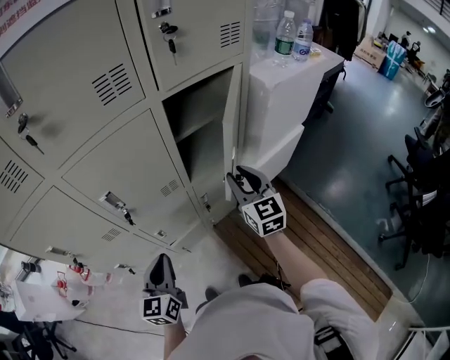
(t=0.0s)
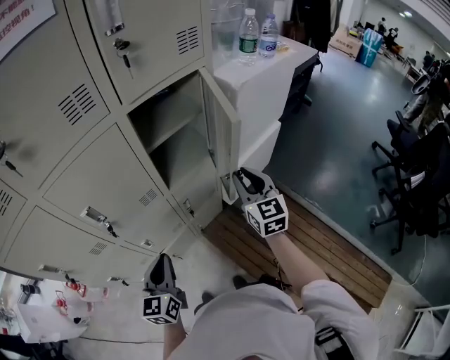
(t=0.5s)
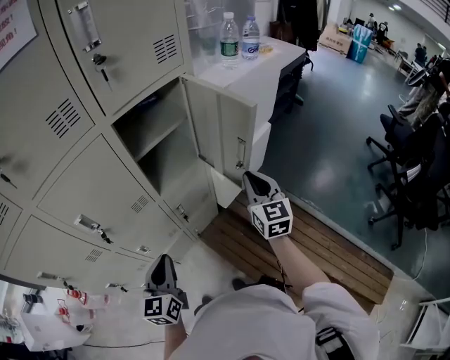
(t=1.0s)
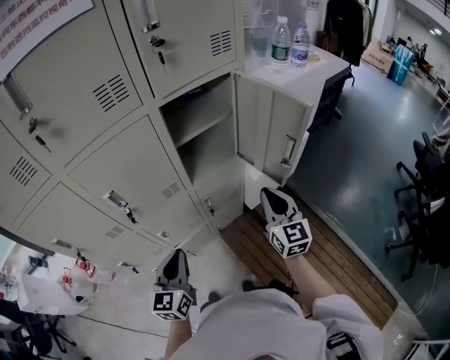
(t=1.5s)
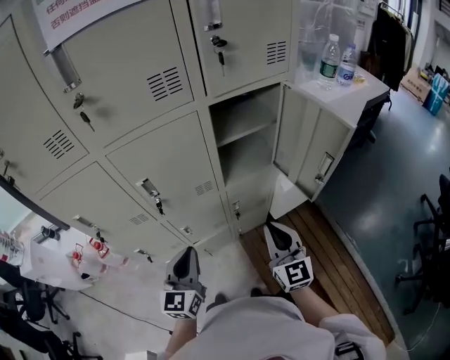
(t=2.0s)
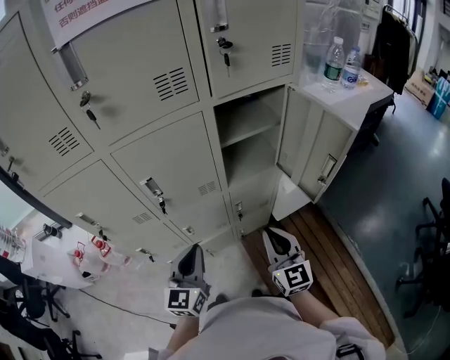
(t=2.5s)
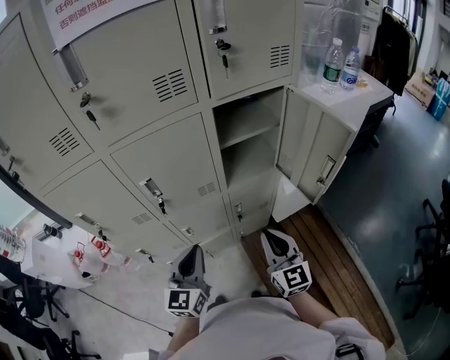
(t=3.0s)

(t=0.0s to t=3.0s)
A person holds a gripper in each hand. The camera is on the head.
t=0.0s - t=1.5s: The right gripper travels to the right and backward by approximately 10 cm, and closes up. The left gripper shifts roughly 5 cm to the right.
t=1.5s - t=3.0s: The right gripper travels to the left and backward by about 15 cm.

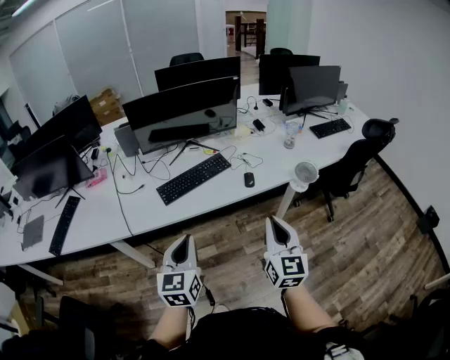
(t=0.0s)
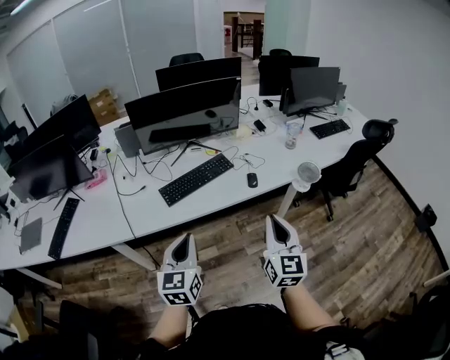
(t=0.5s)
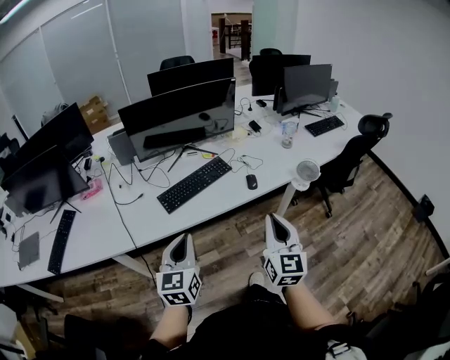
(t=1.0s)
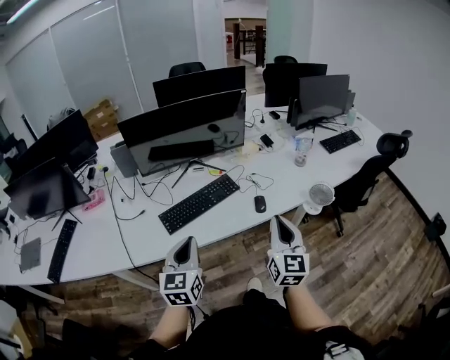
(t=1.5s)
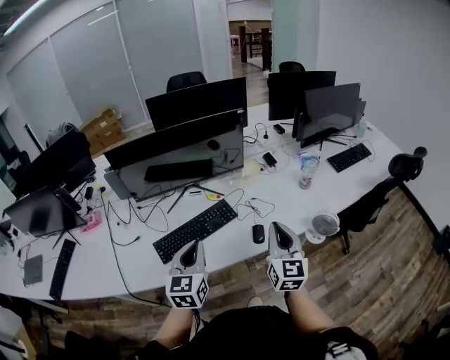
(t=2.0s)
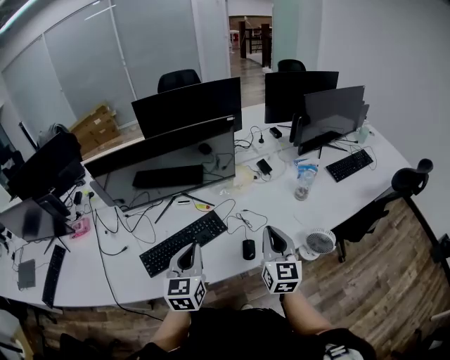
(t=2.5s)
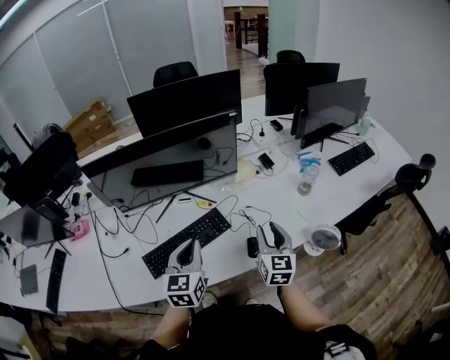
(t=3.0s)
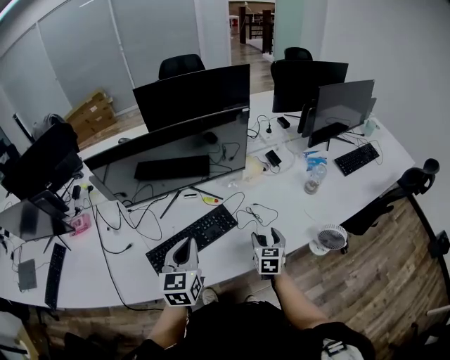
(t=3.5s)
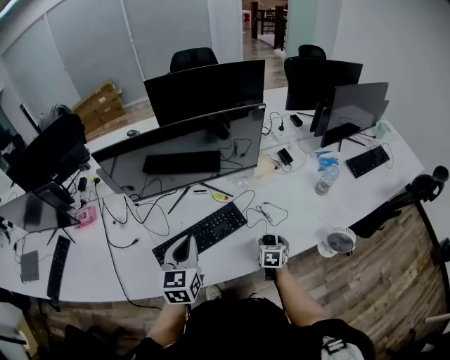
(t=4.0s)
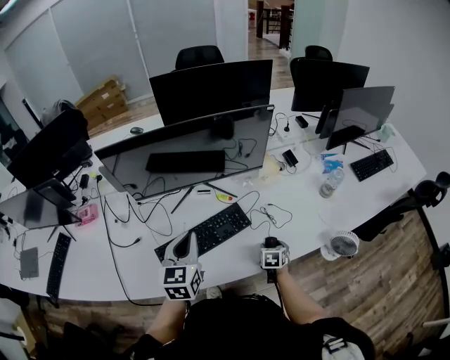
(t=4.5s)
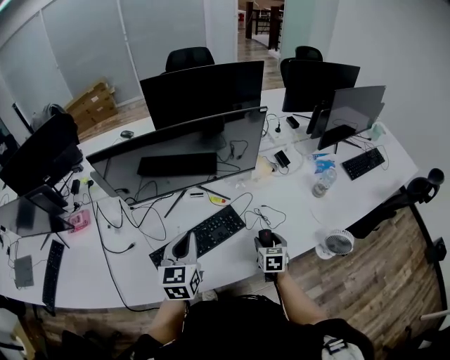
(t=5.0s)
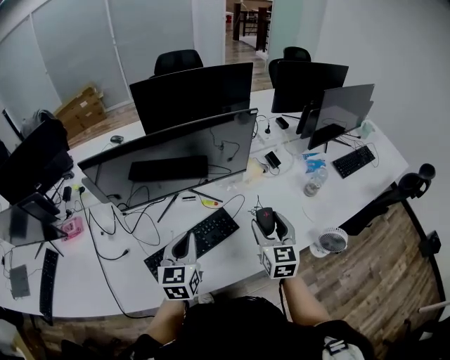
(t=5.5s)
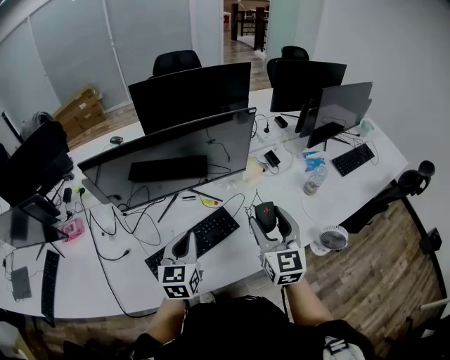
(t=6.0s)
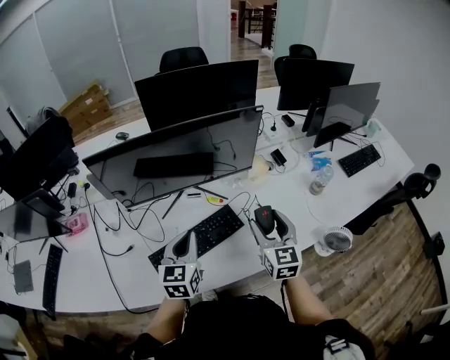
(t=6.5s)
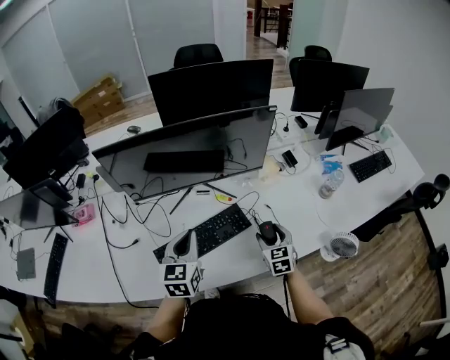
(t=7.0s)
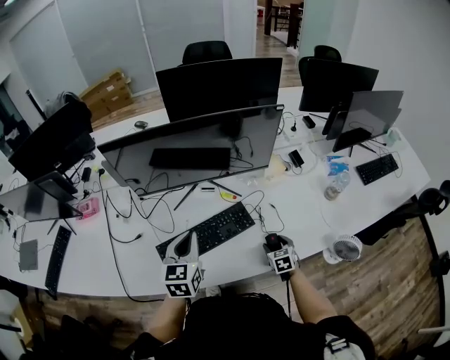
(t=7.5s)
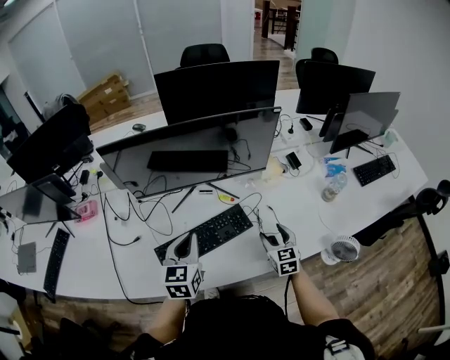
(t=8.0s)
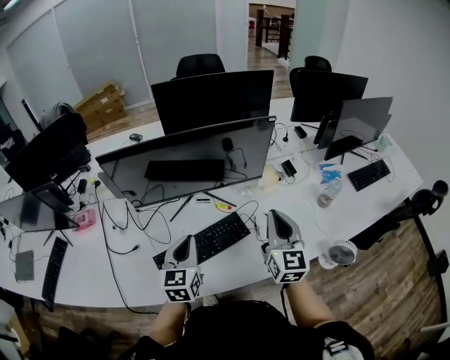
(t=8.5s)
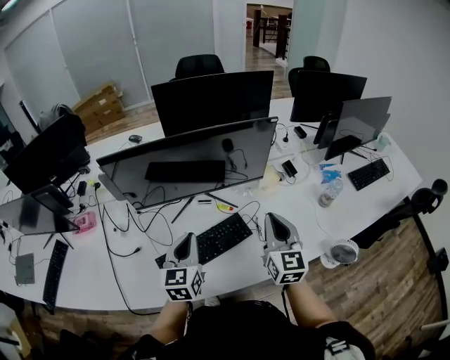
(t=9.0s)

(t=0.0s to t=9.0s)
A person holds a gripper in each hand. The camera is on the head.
t=0.0s - t=2.0s: Both grippers travel together forward, some 30 cm.
t=2.0s - t=4.5s: The right gripper travels downward by approximately 35 cm, tilts its fingers about 50 degrees downward, and opens up. The left gripper is displaced forward and to the left by approximately 15 cm.
t=4.5s - t=7.0s: The right gripper heads upward, covering approximately 15 cm, and turns by some 30 degrees.
t=7.0s - t=9.0s: The right gripper heads upward, covering some 20 cm, swivels roughly 30 degrees, and closes its fingers.

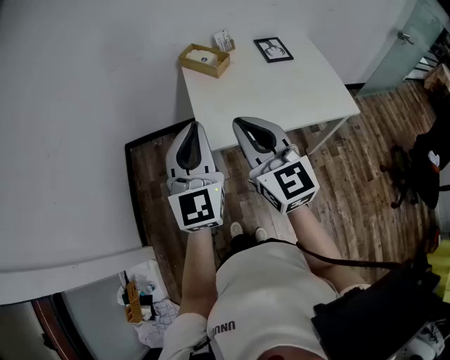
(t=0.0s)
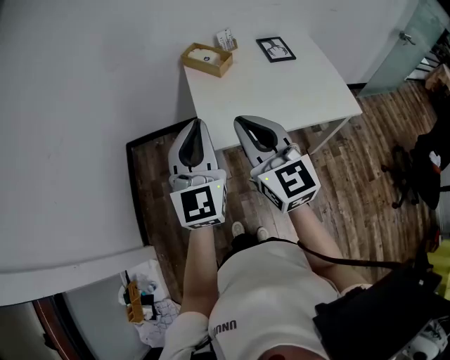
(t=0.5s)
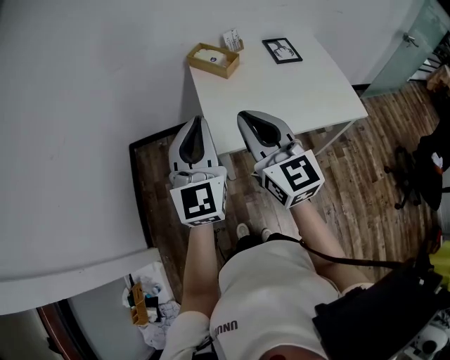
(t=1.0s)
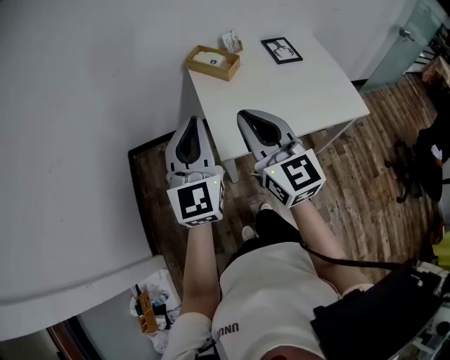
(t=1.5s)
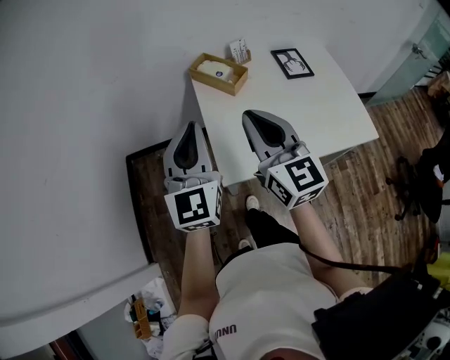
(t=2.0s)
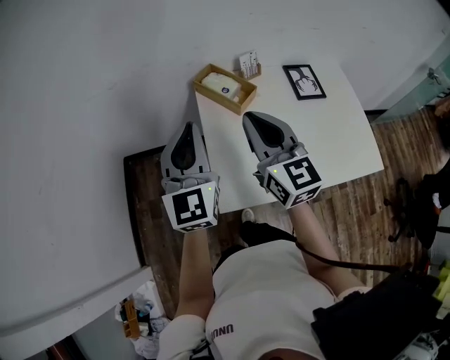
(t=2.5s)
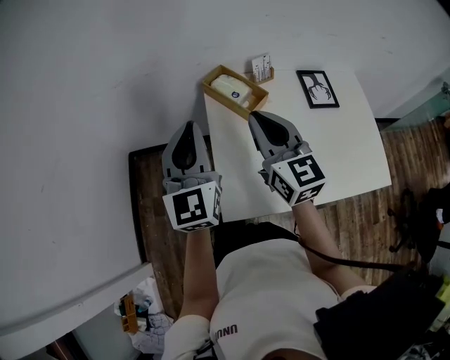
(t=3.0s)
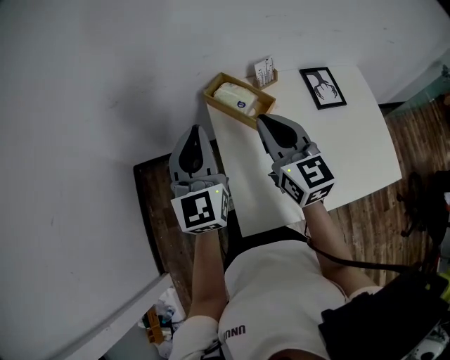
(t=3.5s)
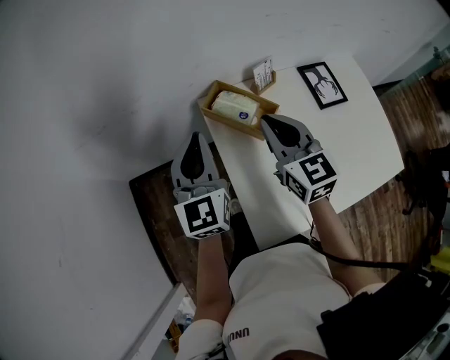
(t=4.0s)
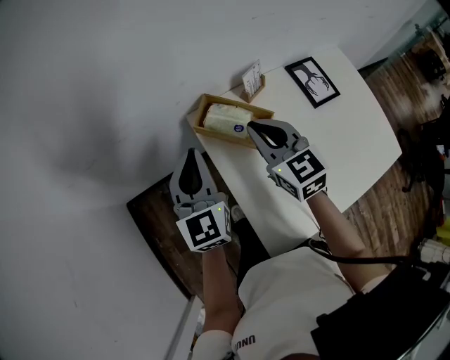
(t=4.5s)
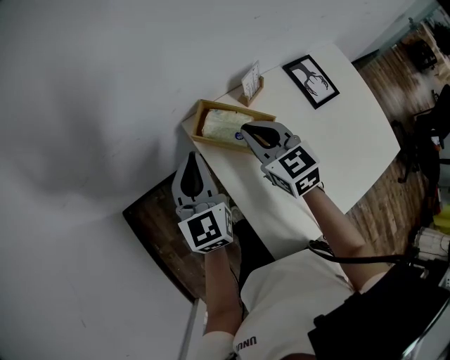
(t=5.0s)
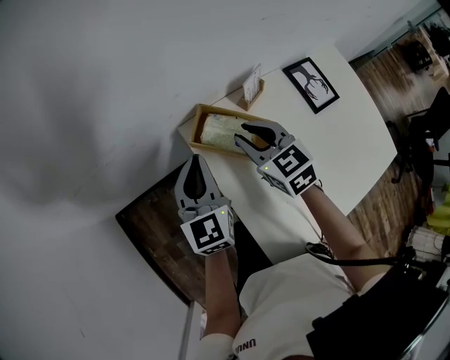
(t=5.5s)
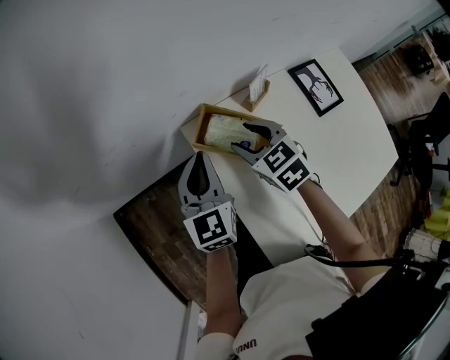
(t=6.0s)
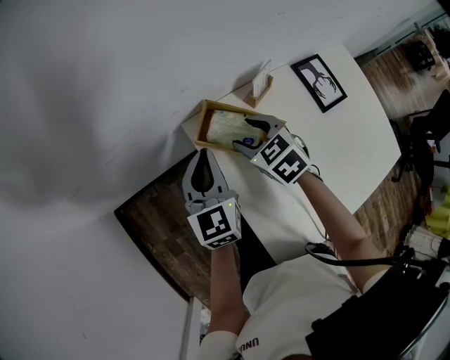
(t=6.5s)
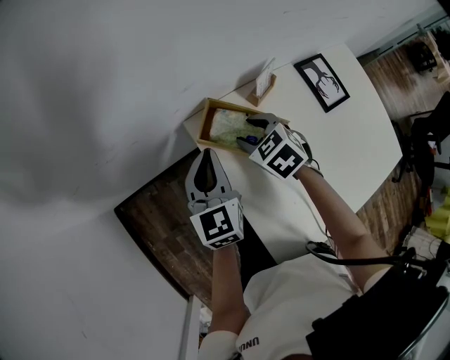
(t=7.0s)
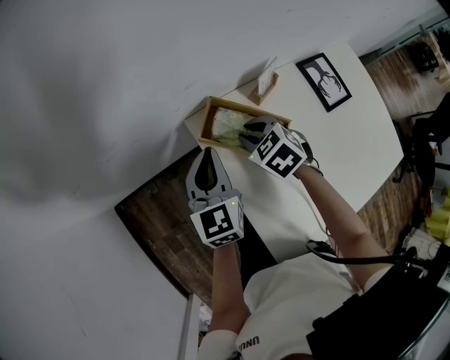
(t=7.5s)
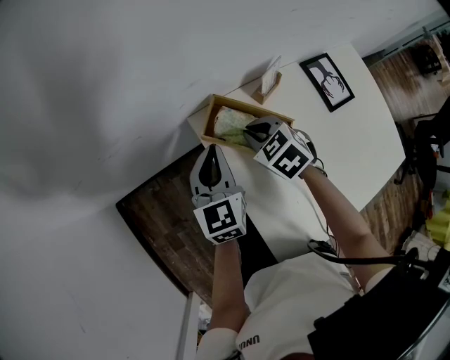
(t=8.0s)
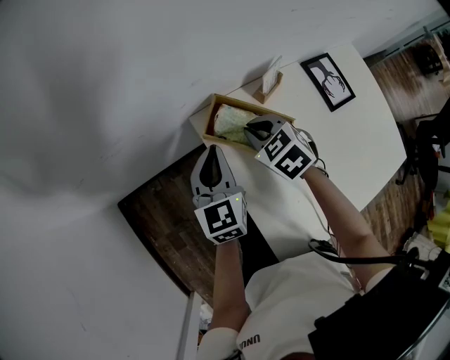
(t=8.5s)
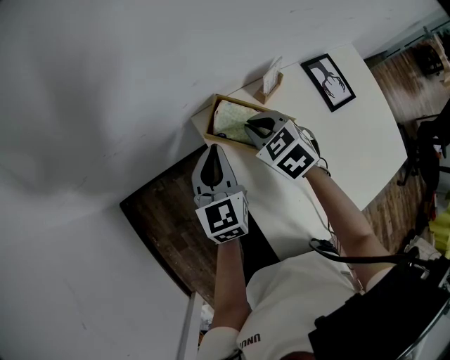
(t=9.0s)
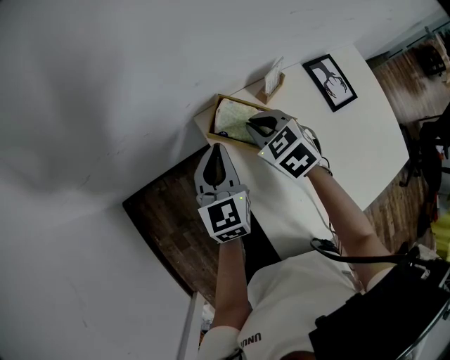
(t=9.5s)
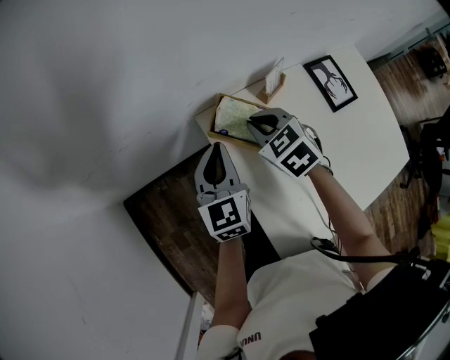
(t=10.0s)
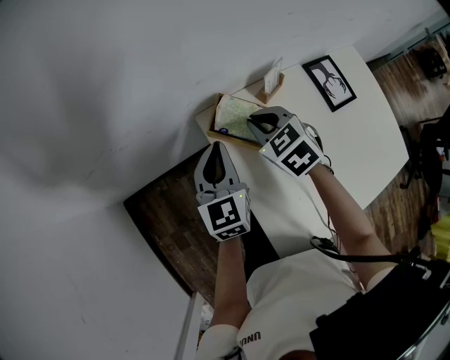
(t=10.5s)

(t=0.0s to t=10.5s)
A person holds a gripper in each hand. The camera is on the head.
t=0.0s - t=2.0s: Both grippers travel together forward, about 15 cm.
t=2.0s - t=4.0s: The two grippers go roughly 30 cm forward.
t=4.0s - t=6.5s: Both grippers move downward and forward, some 20 cm. The right gripper angles its fingers downward, by roughly 40 degrees, and opens.
t=6.5s - t=8.5s: The right gripper closes.
t=8.5s - t=10.5s: The grippers stay close to where they were, moving slightly.

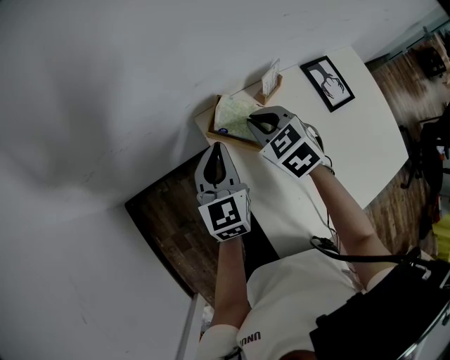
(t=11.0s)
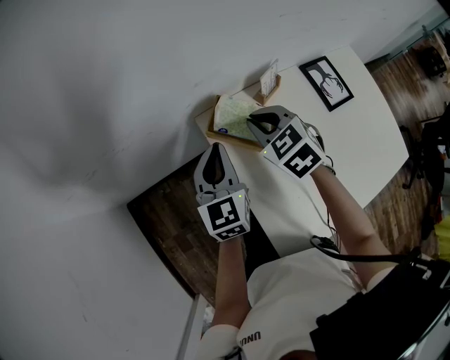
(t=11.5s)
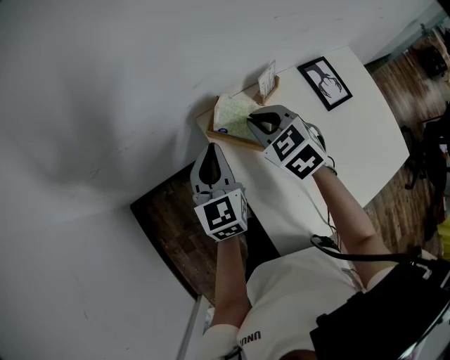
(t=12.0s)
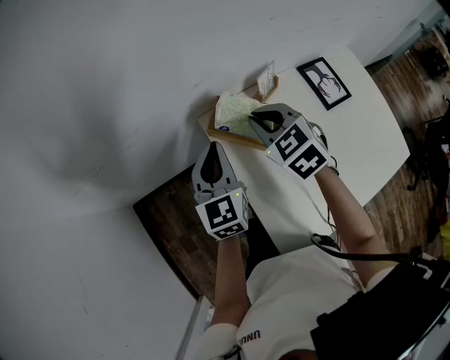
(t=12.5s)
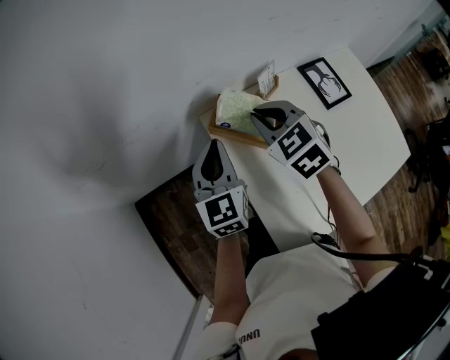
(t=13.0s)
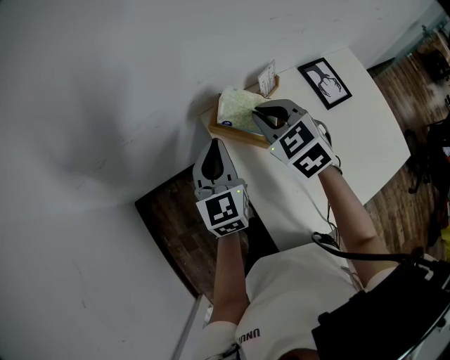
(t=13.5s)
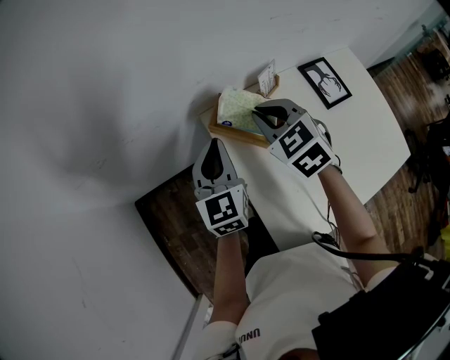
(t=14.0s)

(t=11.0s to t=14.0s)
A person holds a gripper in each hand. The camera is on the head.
t=11.0s - t=12.5s: The right gripper goes roughly 5 cm upward.
t=12.5s - t=14.0s: There are only small adjustments of the grippers.

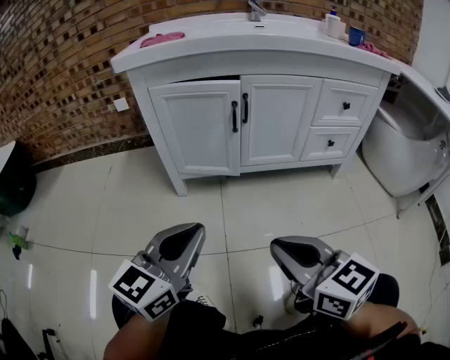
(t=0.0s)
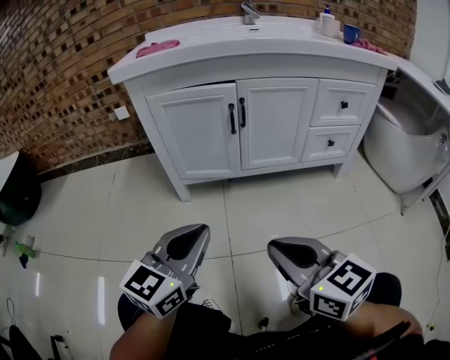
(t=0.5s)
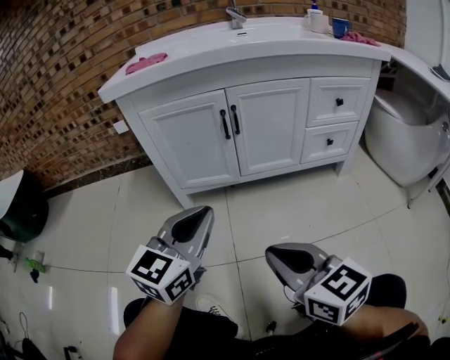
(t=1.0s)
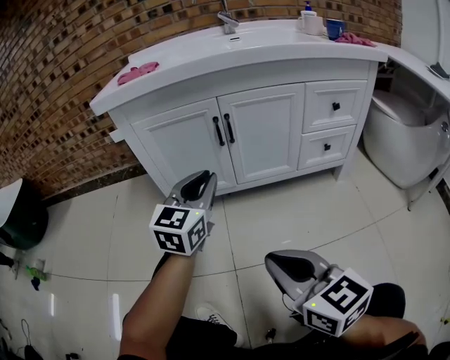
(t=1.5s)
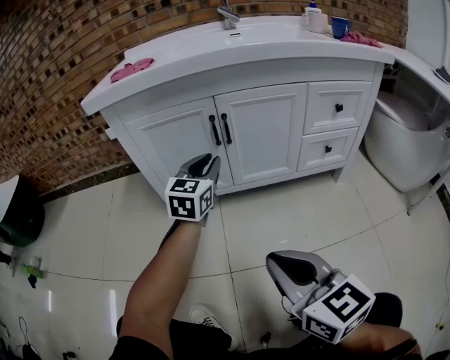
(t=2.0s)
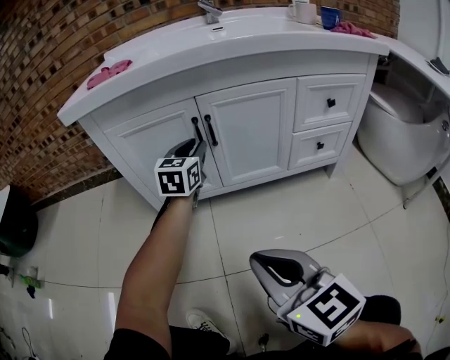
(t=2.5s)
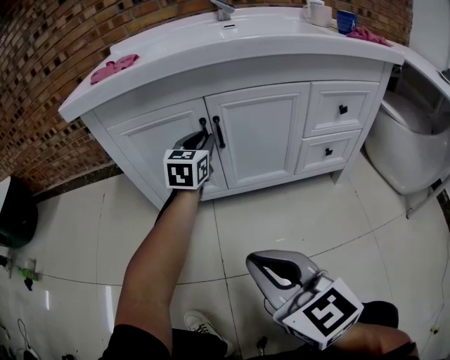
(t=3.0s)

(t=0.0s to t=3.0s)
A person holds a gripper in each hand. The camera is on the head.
t=0.0s - t=1.5s: The left gripper shifts about 20 cm forward.
t=1.5s - t=3.0s: The left gripper shifts approximately 20 cm forward, while the right gripper heads forward, covering approximately 10 cm.
